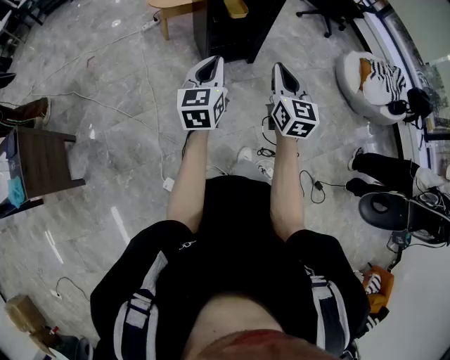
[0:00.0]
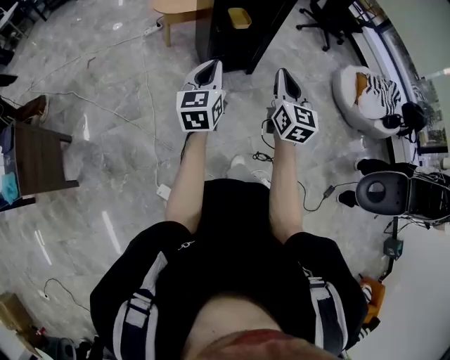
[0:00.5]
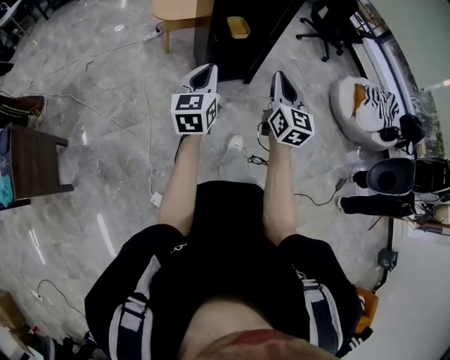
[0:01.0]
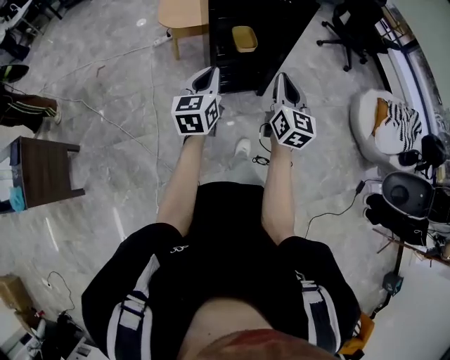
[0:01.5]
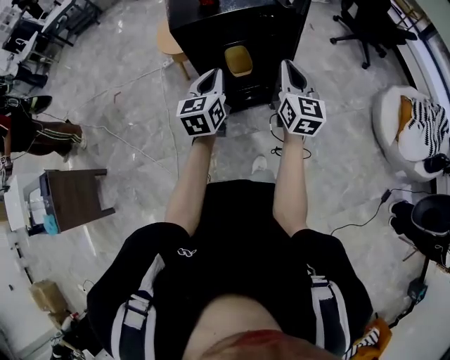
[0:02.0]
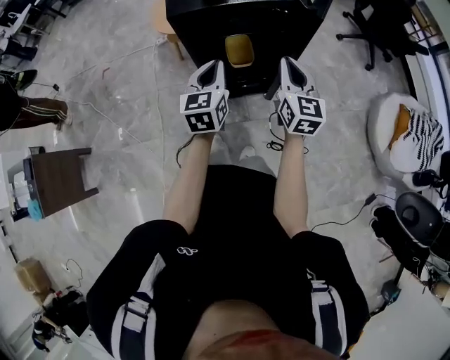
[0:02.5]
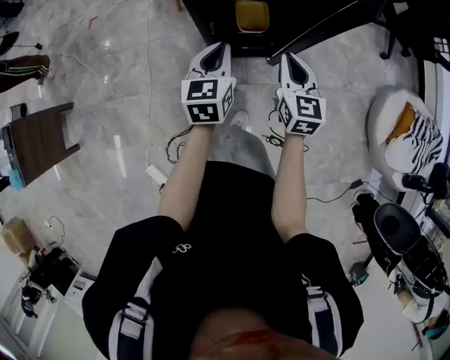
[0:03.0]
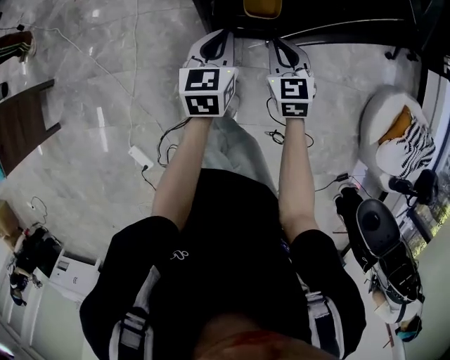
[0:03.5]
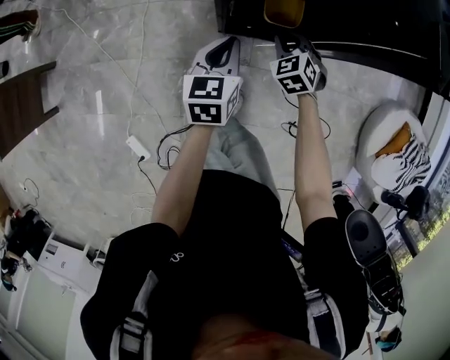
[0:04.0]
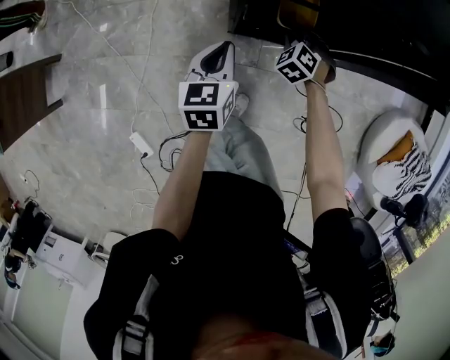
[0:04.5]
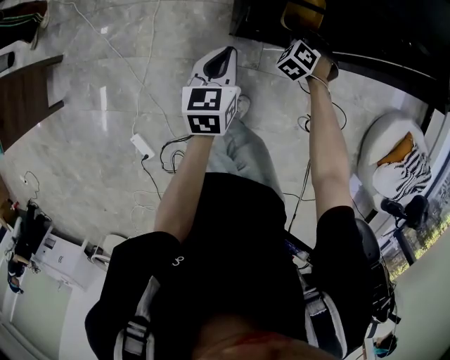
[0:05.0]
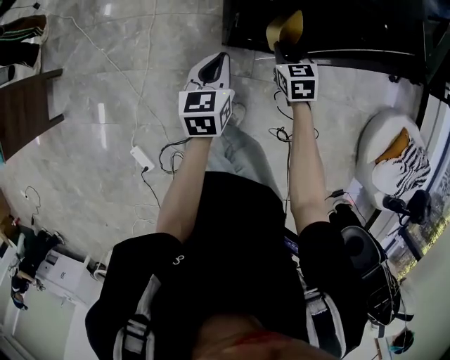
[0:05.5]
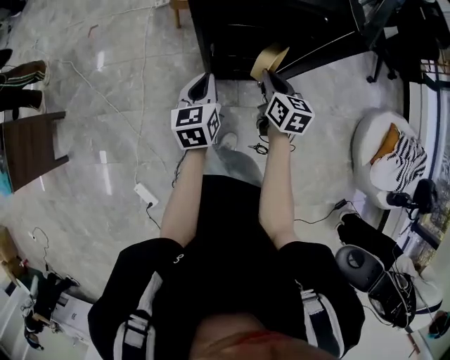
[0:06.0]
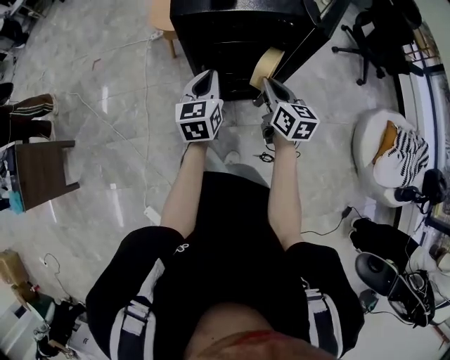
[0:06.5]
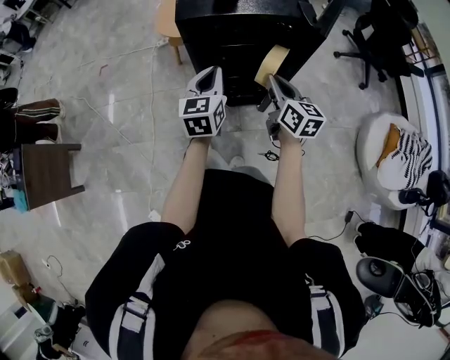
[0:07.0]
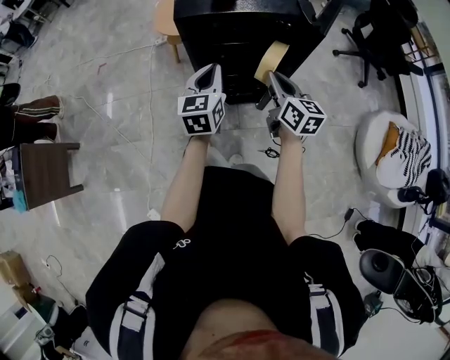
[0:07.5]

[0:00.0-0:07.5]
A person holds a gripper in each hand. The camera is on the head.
0:00.0 to 0:02.0: The two grippers travel together, forward, roughly 40 cm.
0:02.0 to 0:04.0: The left gripper goes about 20 cm downward, and rotates about 20 degrees; the right gripper moves downward, forward and to the left, about 40 cm, and tilts its fingers about 50 degrees downward.
0:04.0 to 0:05.5: The right gripper rotates about 30 degrees.
0:05.5 to 0:07.5: The two grippers go about 20 cm upward and to the right. The left gripper turns by about 20 degrees. The right gripper tips its fingers upward by approximately 30 degrees.

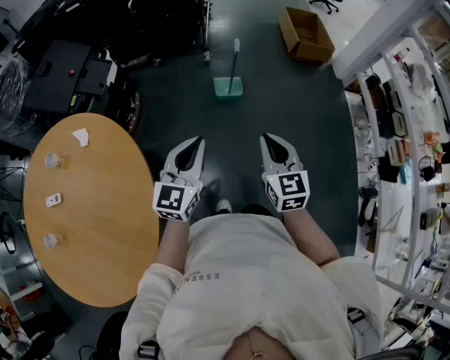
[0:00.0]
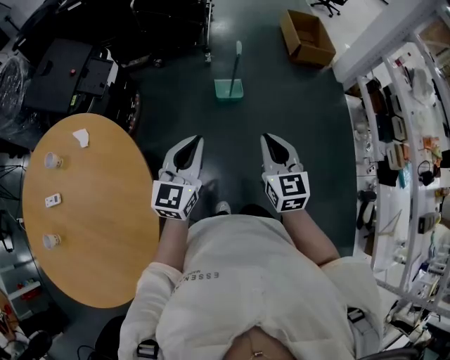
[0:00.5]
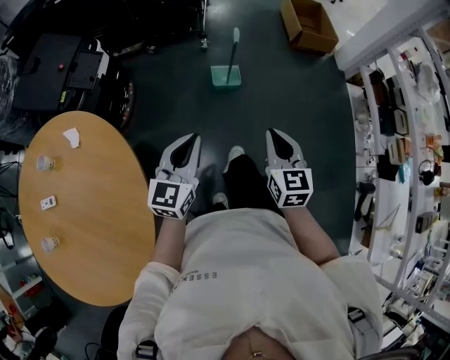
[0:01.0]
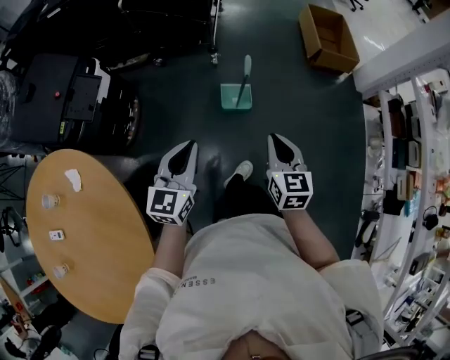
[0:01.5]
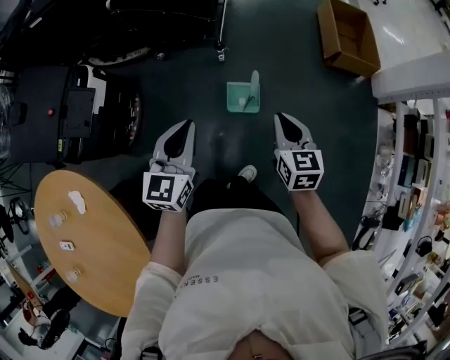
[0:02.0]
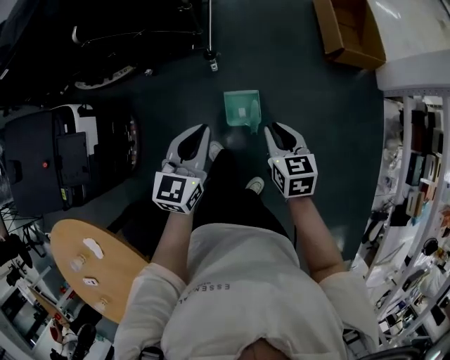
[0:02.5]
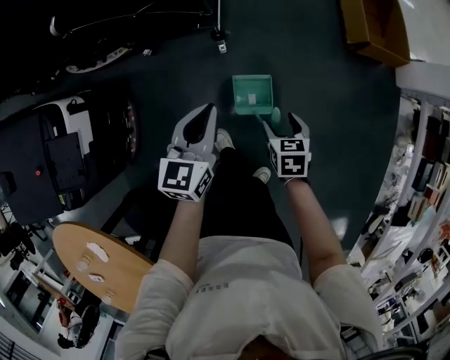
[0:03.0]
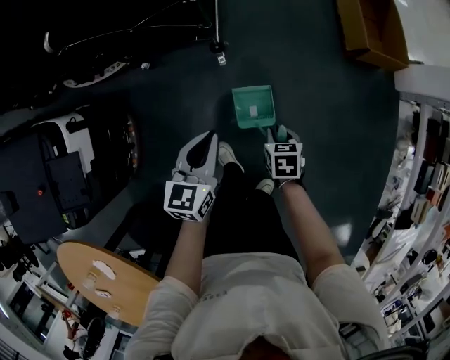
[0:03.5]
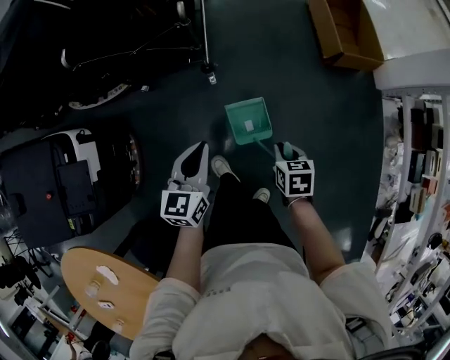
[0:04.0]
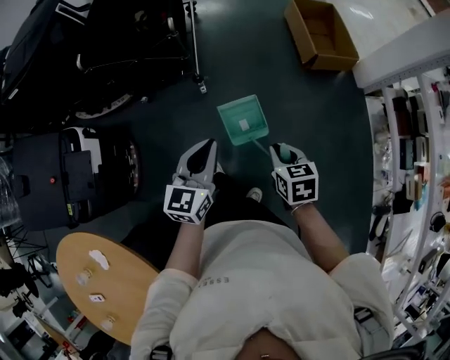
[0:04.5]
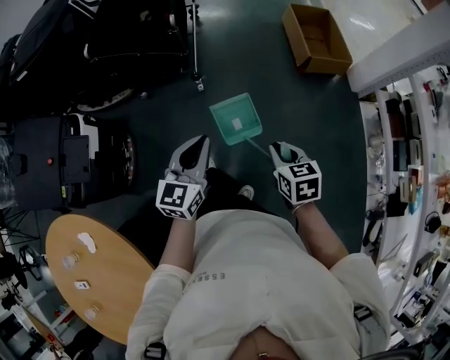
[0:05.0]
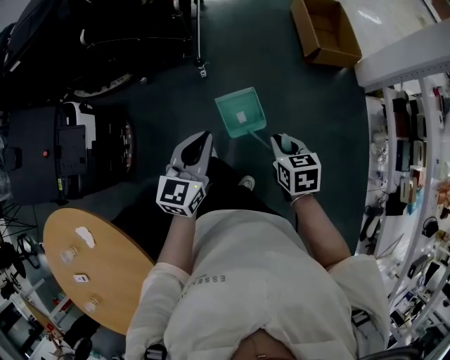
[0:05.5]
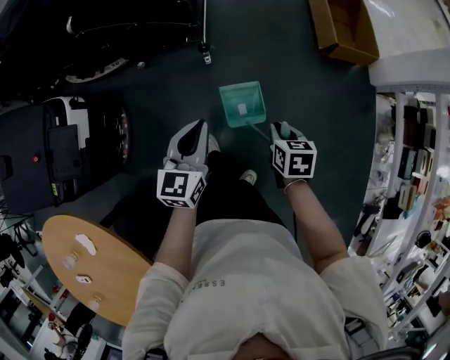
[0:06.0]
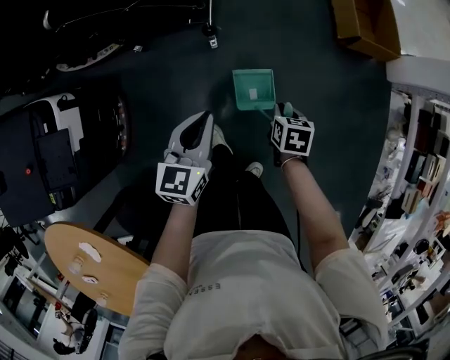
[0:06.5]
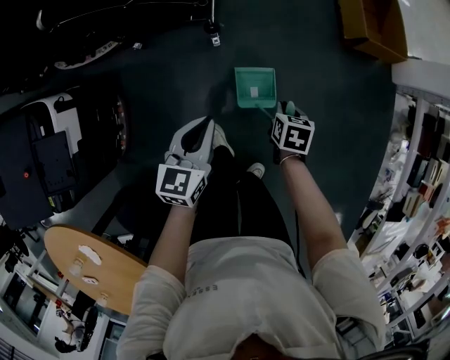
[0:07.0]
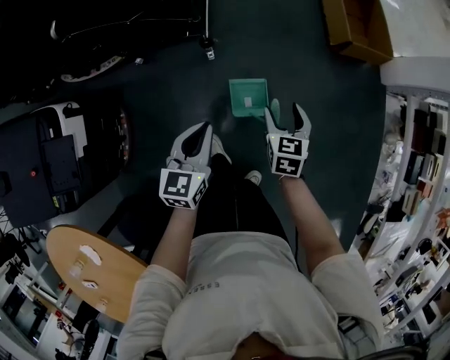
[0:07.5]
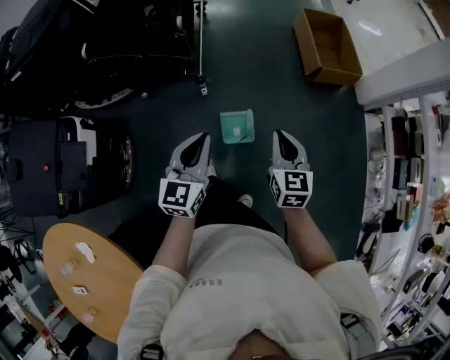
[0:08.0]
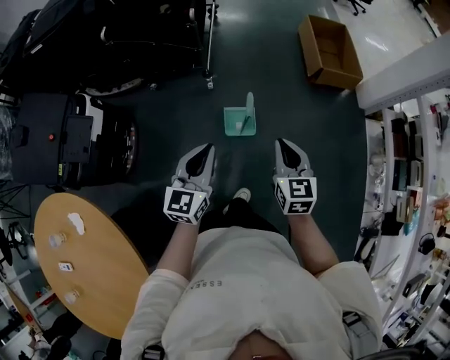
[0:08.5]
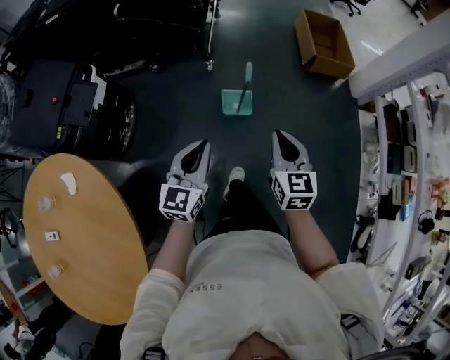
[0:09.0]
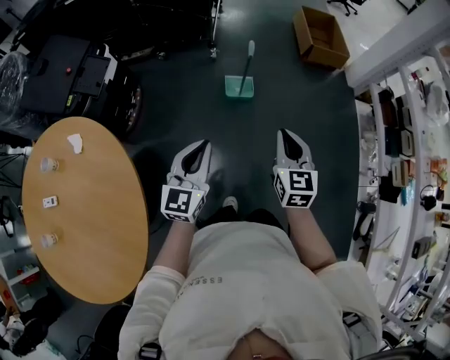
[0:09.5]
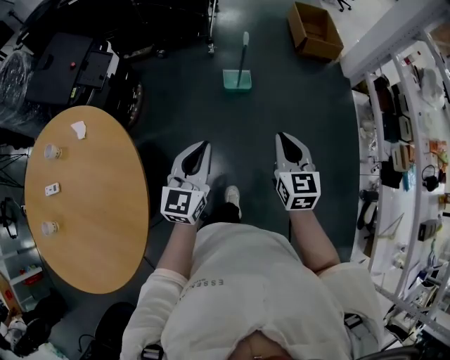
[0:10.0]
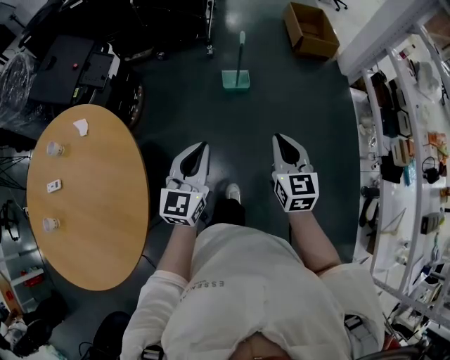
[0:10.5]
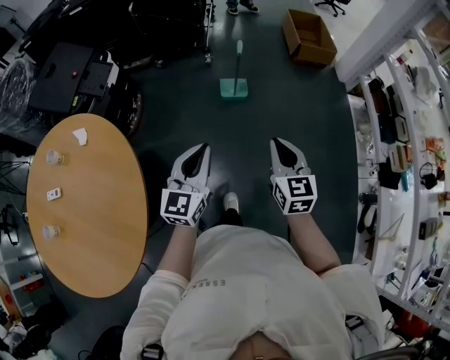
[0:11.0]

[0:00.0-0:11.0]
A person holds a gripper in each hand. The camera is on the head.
0:00.0 to 0:02.0: The pair of grippers is taken forward, approximately 40 cm.
0:02.0 to 0:03.5: The right gripper travels downward and forward by approximately 35 cm, points its fingers about 40 degrees further downward, and opens, then closes again. The left gripper shifts roughly 30 cm forward and downward.
0:03.5 to 0:05.5: The left gripper heads backward, upward and to the right, covering some 25 cm, while the right gripper is displaced upward and backward by roughly 30 cm.
0:05.5 to 0:07.5: The left gripper shifts approximately 20 cm downward, forward and to the left. Meanwhile the right gripper heads forward and downward, covering approximately 25 cm, and opens up.
0:07.5 to 0:09.0: The grippers both shift backward and upward by some 40 cm. The right gripper changes its angle by about 20 degrees, and closes.
0:09.0 to 0:11.0: Both grippers travel together backward, approximately 30 cm.

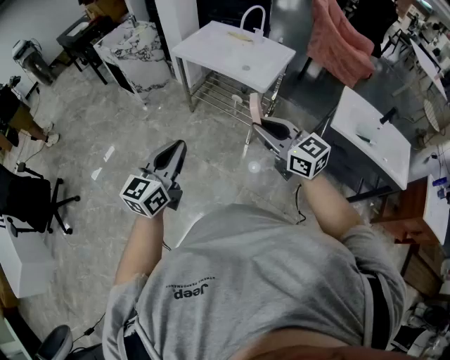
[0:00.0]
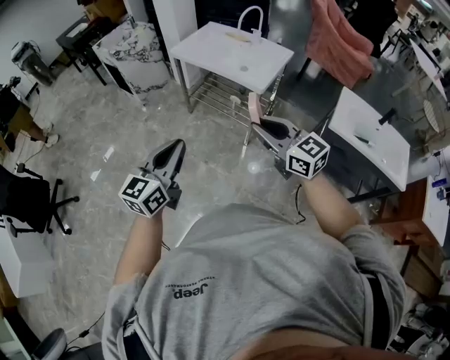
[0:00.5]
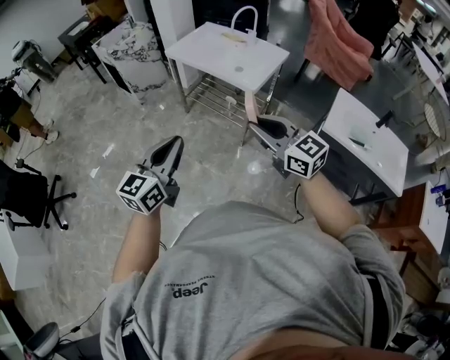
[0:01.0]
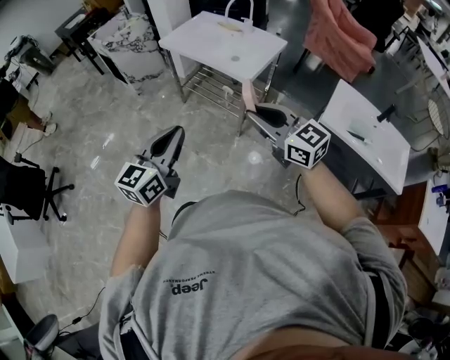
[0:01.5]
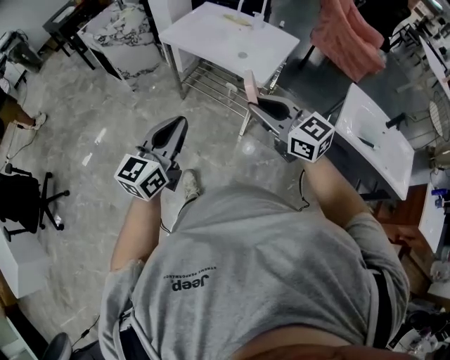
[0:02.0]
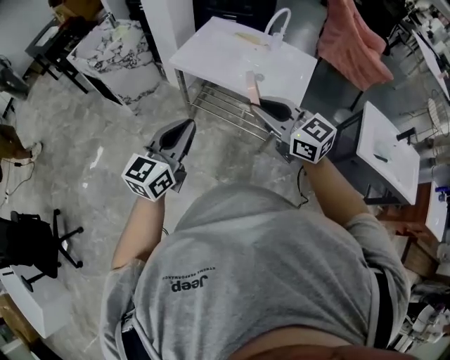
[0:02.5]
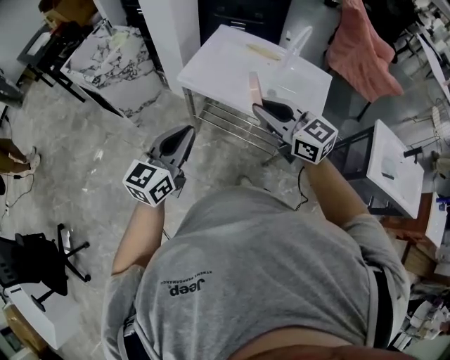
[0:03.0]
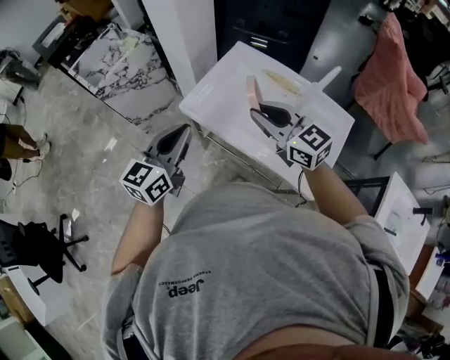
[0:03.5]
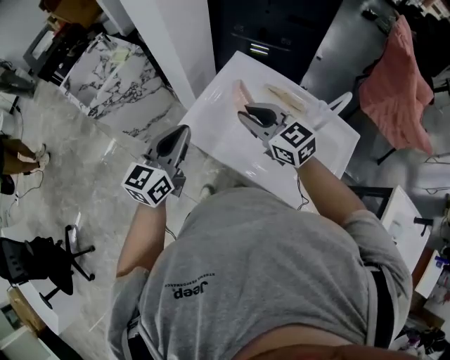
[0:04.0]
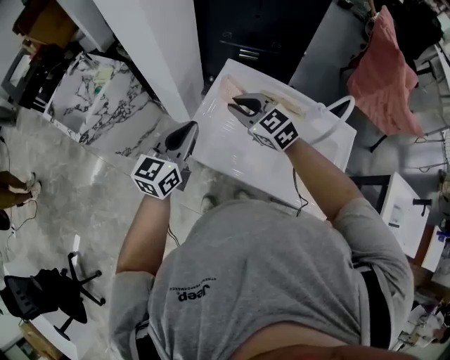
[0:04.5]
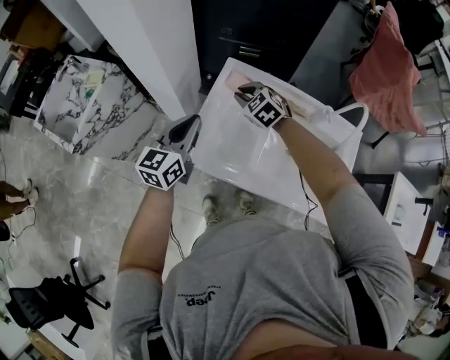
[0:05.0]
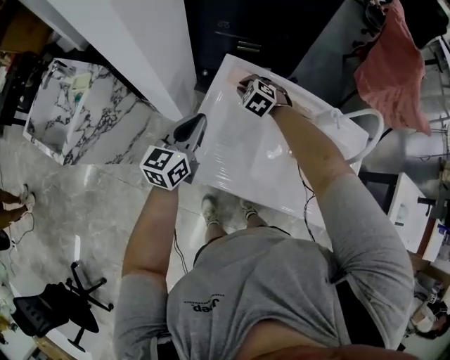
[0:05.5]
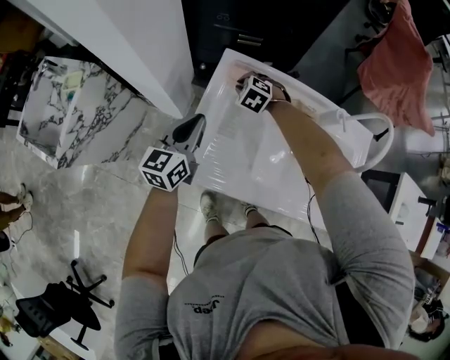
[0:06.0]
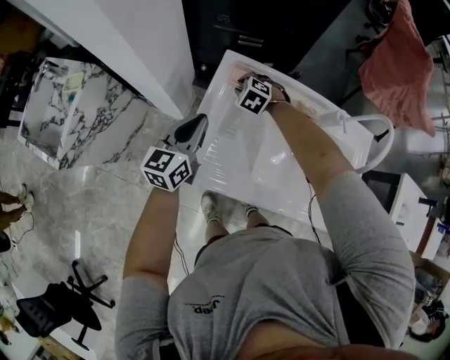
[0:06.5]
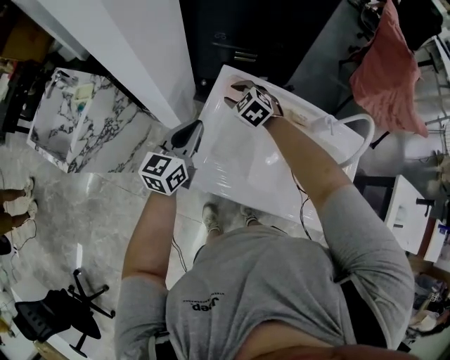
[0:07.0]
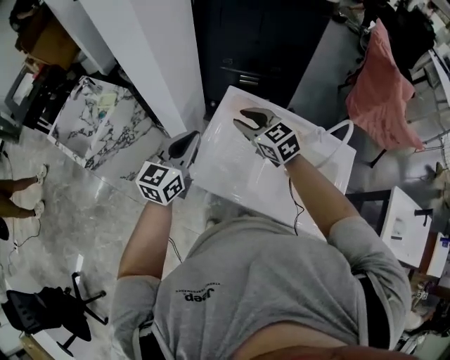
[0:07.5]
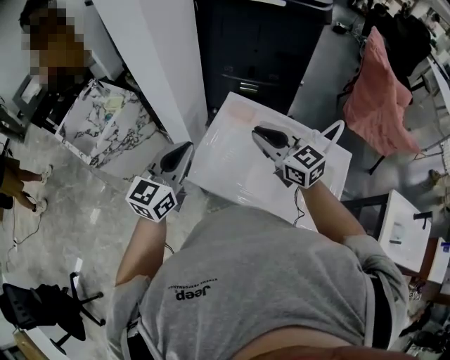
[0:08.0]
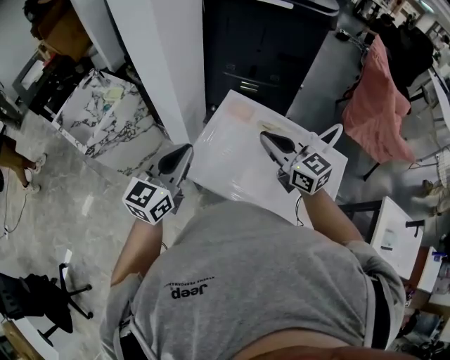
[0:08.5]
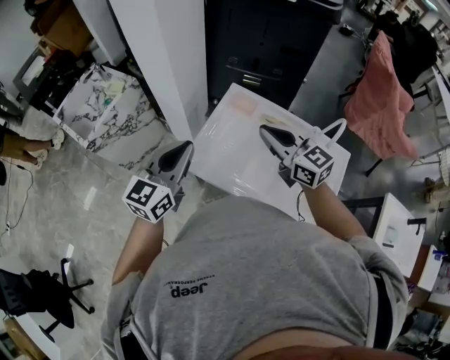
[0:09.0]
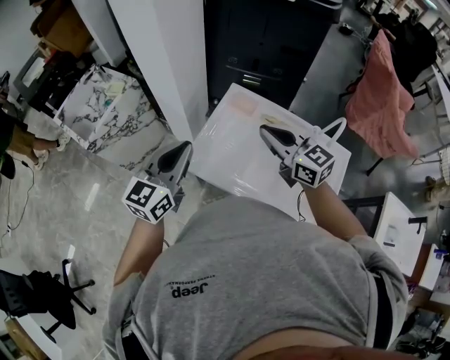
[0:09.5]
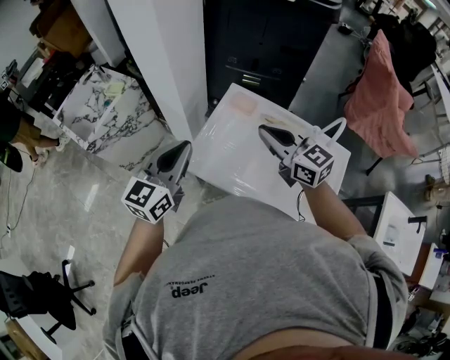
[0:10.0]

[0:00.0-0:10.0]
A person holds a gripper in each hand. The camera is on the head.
0:00.0 to 0:02.0: The right gripper is displaced forward by roughly 15 cm, while the left gripper travels forward and to the right by roughly 15 cm.
0:02.0 to 0:04.0: The pair of grippers is taken forward, approximately 70 cm.
0:04.0 to 0:06.0: The right gripper goes approximately 30 cm downward, and angles its fingers downward, by roughly 40 degrees. Meanwhile the left gripper shifts by roughly 25 cm.
0:06.0 to 0:08.0: The right gripper heads upward and backward, covering some 40 cm, points its fingers roughly 50 degrees further upward, and opens, then closes again; the left gripper moves upward and backward, roughly 25 cm.
0:08.0 to 0:10.0: The grippers stay close to where they were, moving slightly.
